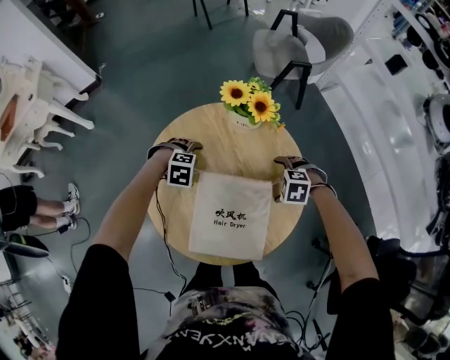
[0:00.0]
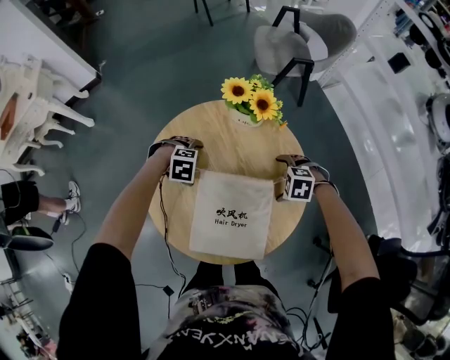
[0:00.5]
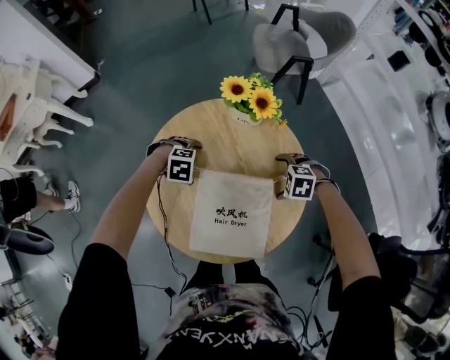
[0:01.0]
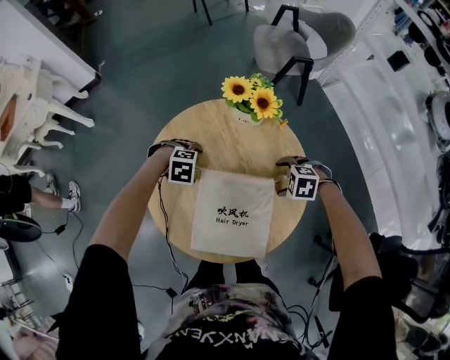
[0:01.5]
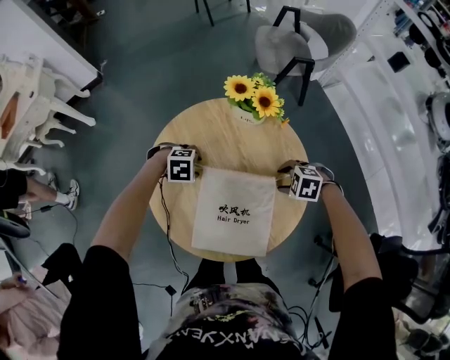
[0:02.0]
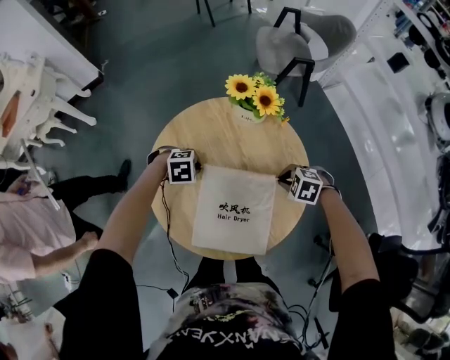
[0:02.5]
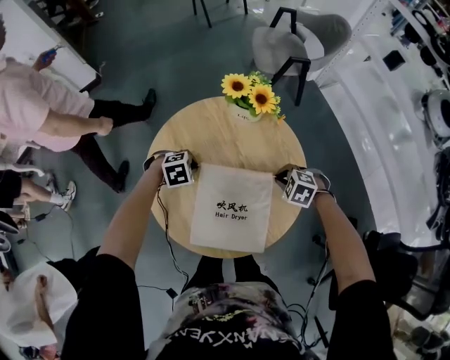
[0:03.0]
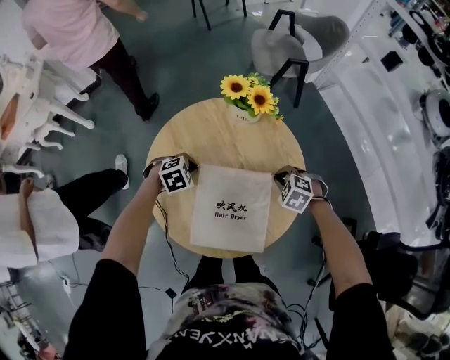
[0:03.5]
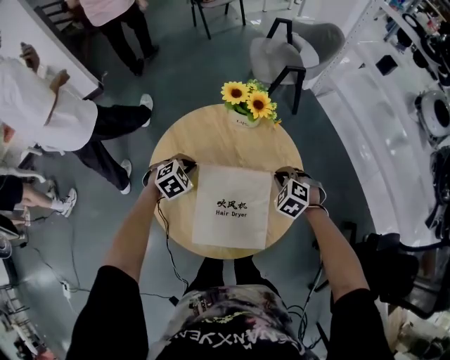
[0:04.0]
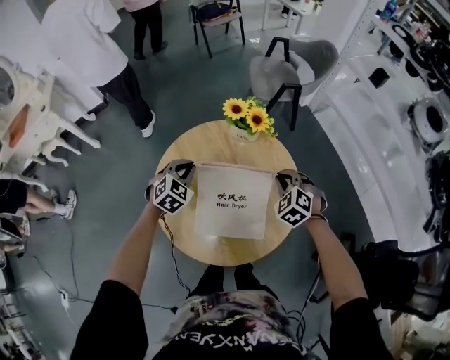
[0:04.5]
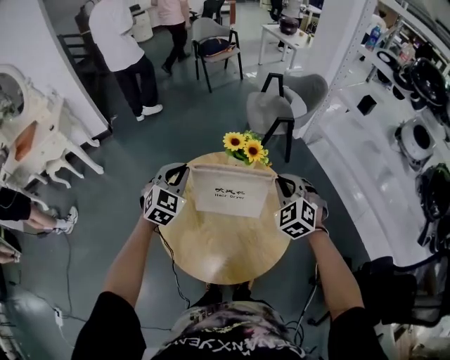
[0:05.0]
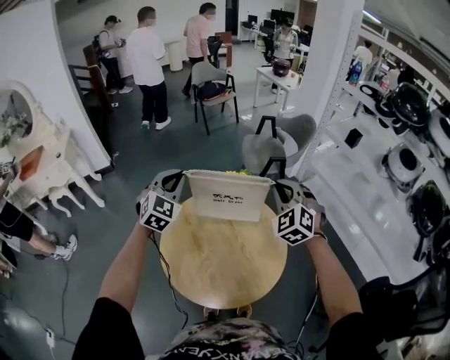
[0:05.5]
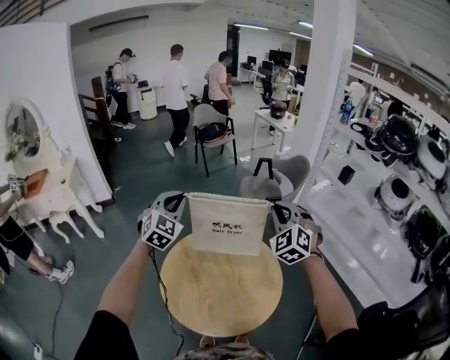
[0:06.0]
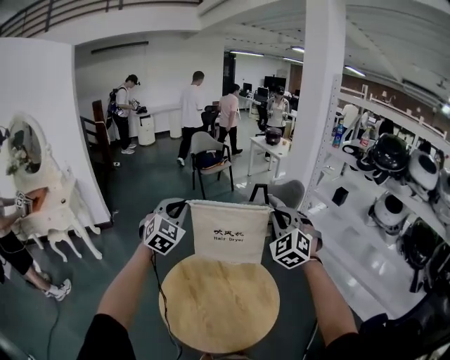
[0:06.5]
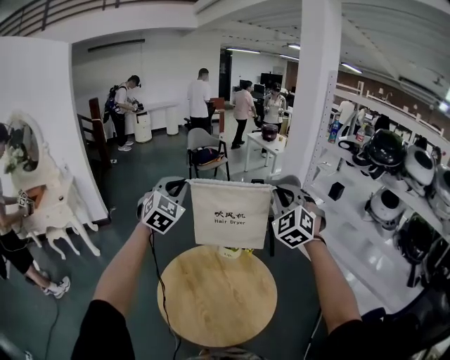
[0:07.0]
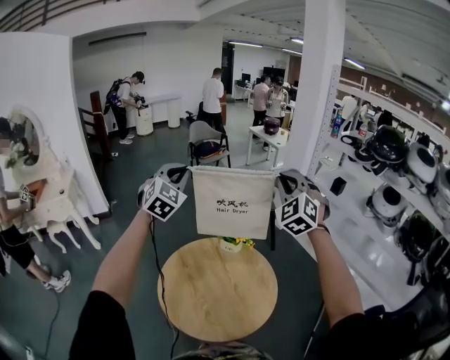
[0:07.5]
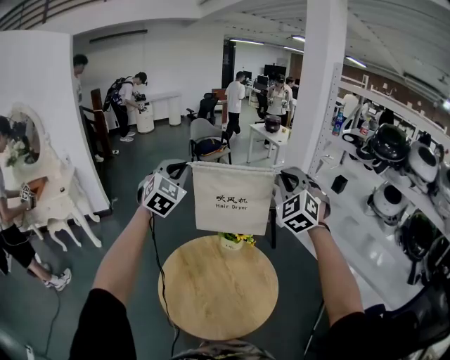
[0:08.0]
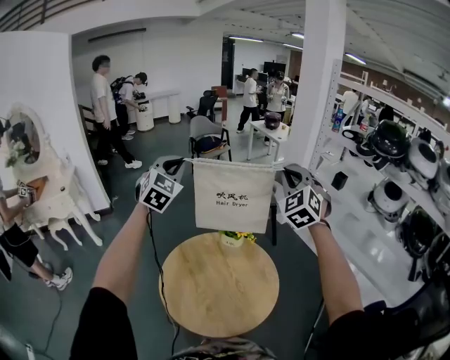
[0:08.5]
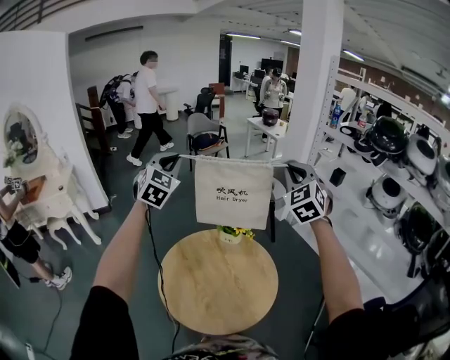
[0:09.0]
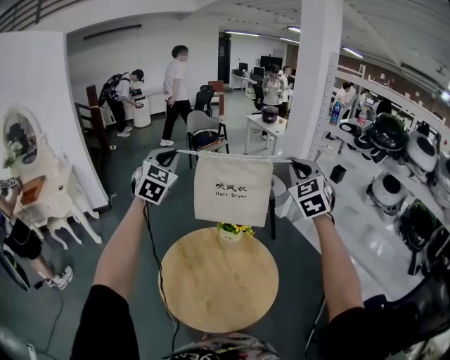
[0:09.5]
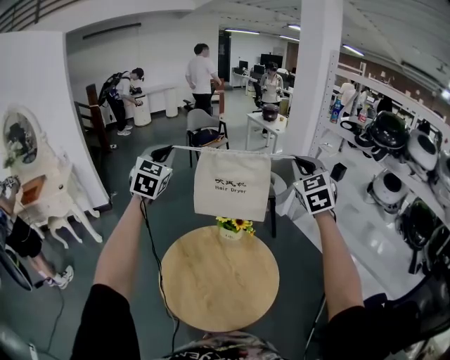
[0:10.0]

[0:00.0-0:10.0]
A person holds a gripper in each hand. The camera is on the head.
0:00.0 to 0:02.0: The right gripper closes its fingers. Meanwhile the left gripper closes its fingers.
0:02.0 to 0:04.0: The right gripper changes its angle by about 30 degrees, and closes. The left gripper turns by some 30 degrees, and closes up.
0:04.0 to 0:06.0: Both grippers move upward, roughly 40 cm. The right gripper points its fingers some 50 degrees further upward; the left gripper tilts its fingers some 50 degrees upward.
0:06.0 to 0:08.0: Both grippers travel together upward, some 15 cm.
0:08.0 to 0:10.0: The right gripper shifts some 5 cm to the right, and changes its angle by about 20 degrees.

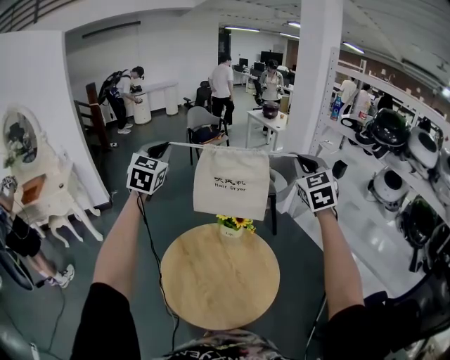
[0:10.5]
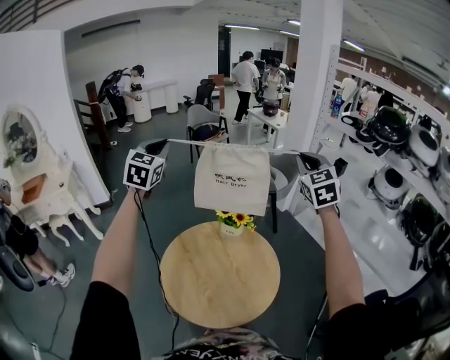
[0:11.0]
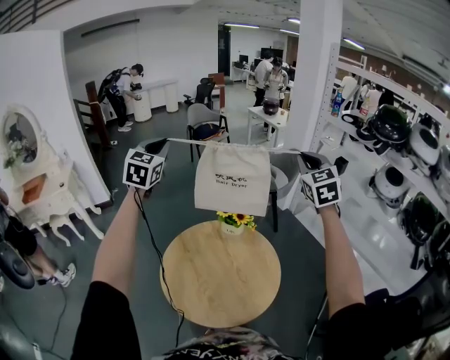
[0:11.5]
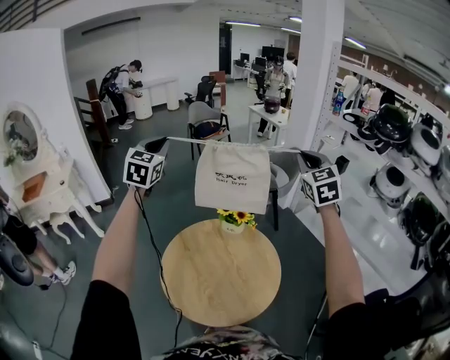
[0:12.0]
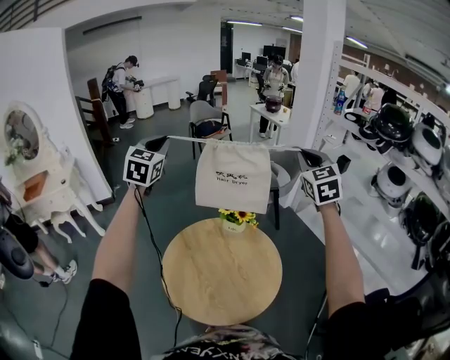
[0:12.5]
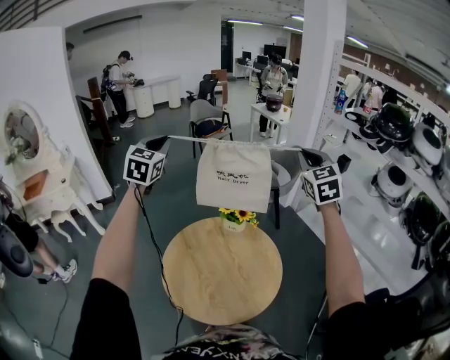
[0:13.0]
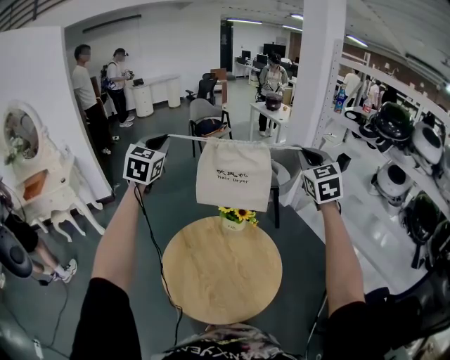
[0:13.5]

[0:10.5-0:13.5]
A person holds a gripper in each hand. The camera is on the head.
0:10.5 to 0:12.0: The grippers move only a little.
0:12.0 to 0:13.5: Neither gripper changes place.

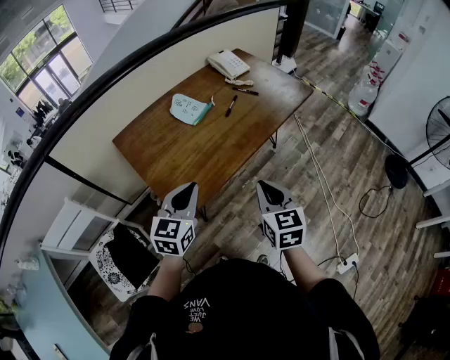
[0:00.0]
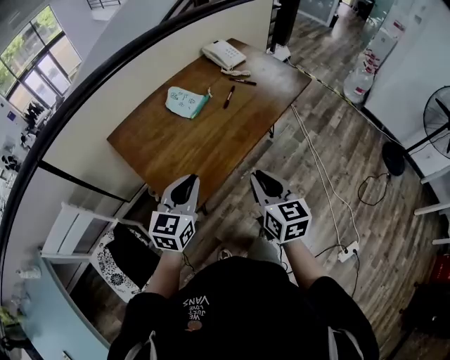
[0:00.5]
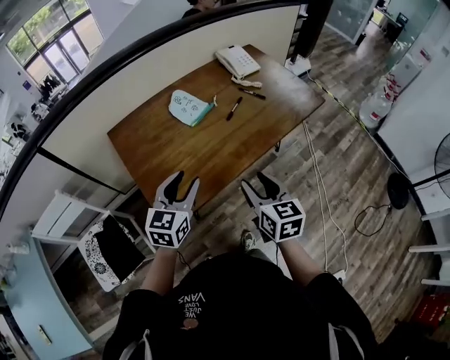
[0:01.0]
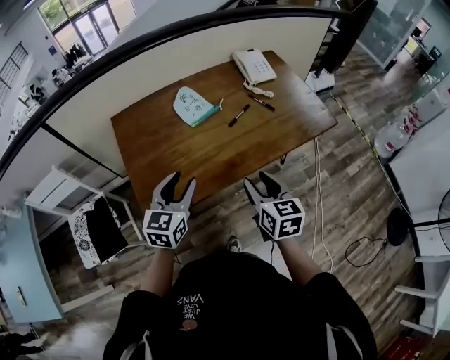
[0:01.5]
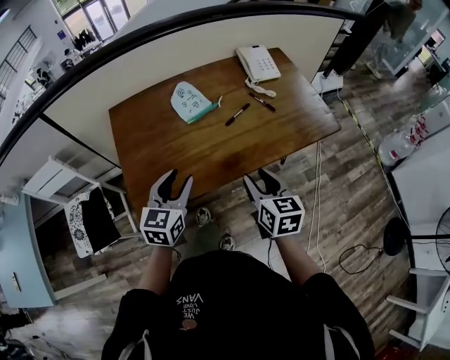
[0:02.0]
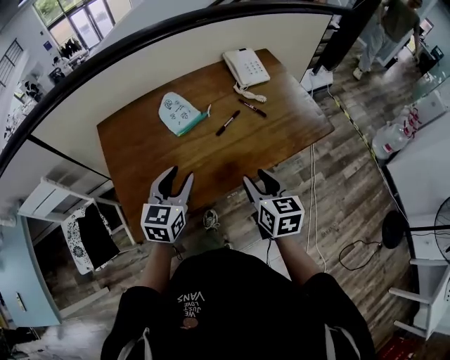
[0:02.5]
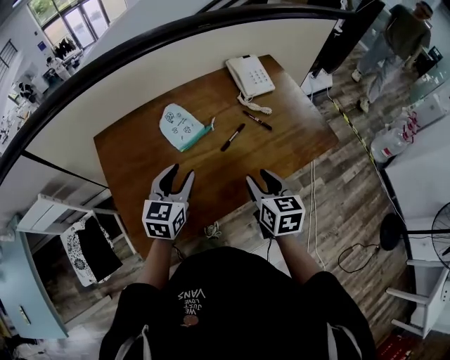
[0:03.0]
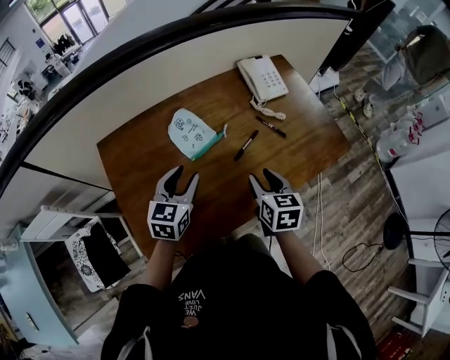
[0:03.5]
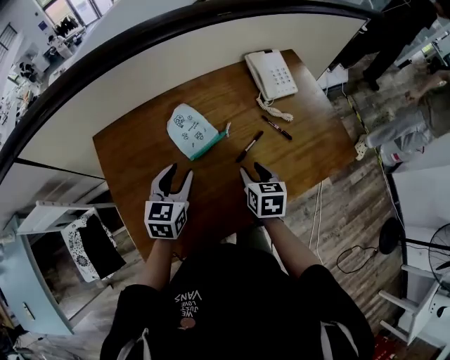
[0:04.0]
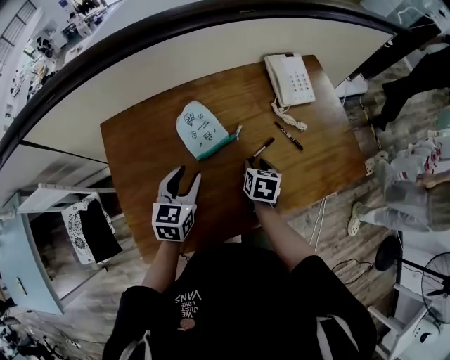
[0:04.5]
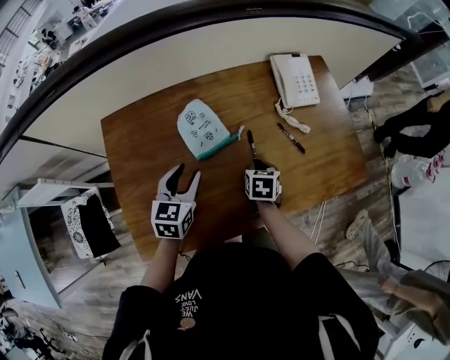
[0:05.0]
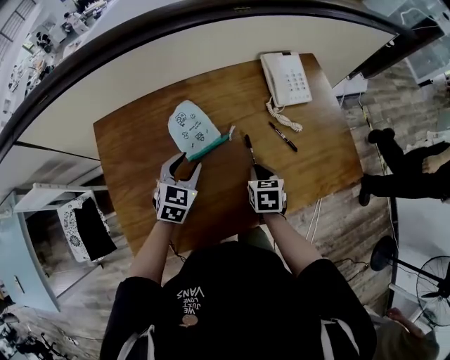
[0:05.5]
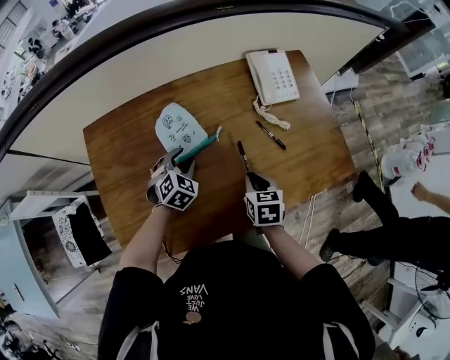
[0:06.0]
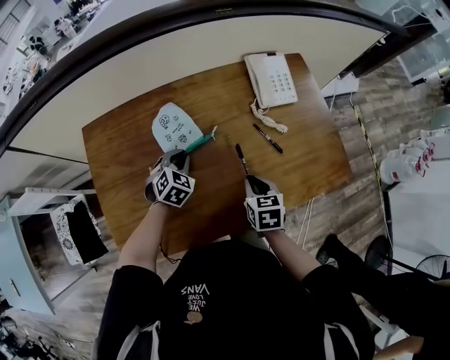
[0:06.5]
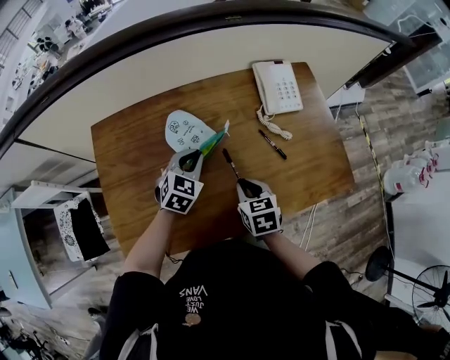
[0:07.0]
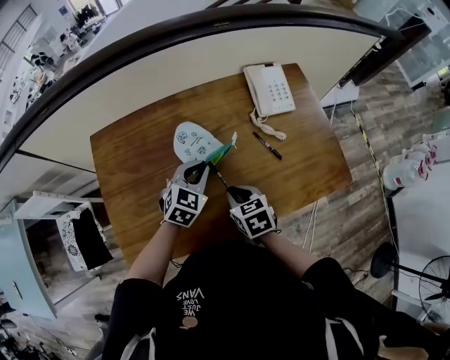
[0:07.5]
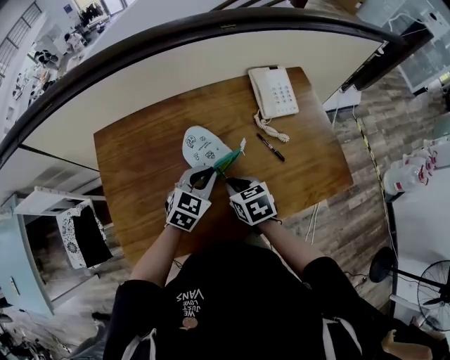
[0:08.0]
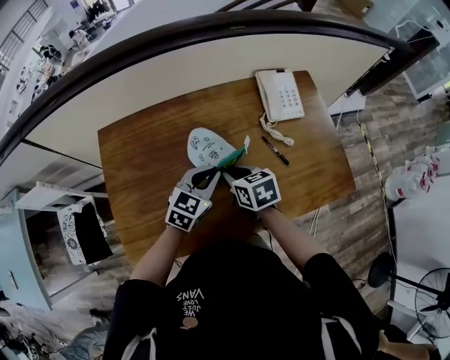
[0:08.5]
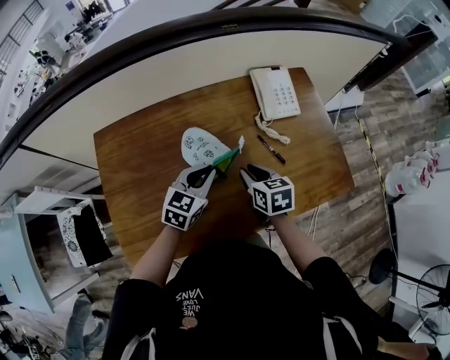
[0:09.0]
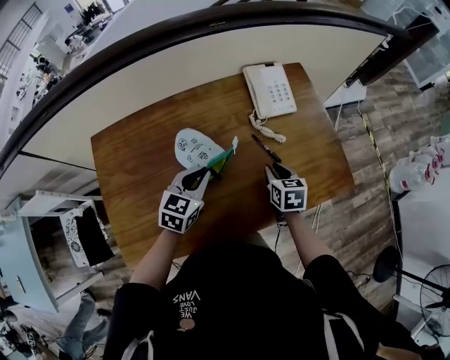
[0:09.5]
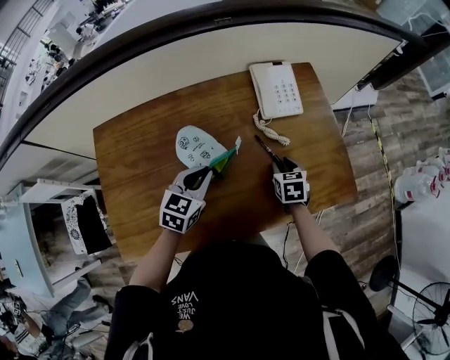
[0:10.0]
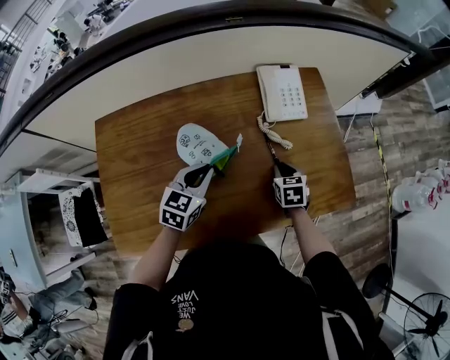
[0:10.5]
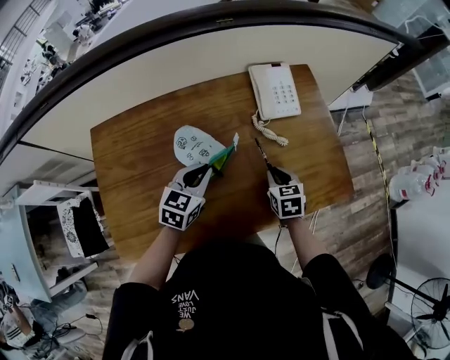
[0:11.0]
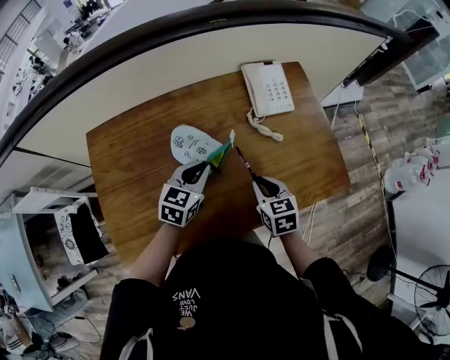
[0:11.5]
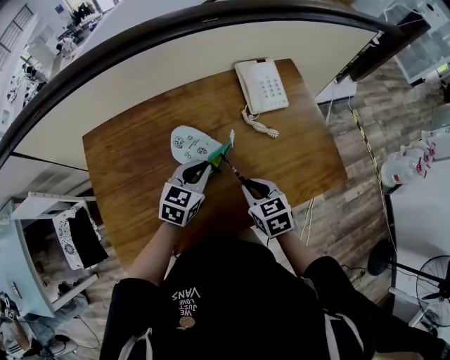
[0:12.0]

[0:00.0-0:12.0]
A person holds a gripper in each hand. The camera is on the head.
0:00.0 to 0:02.0: The grippers both shift forward and to the right by about 20 cm. The left gripper swivels some 20 degrees, and opens. The right gripper turns by roughly 20 degrees, and opens up.
0:02.0 to 0:04.0: The right gripper goes approximately 25 cm forward and downward, while the left gripper goes roughly 20 cm forward.
0:04.0 to 0:06.0: The left gripper travels downward and forward by about 15 cm, and changes its angle by roughly 40 degrees. The right gripper closes its fingers.
0:06.0 to 0:08.0: The left gripper shifts approximately 10 cm upward and to the right, turns by approximately 20 degrees, and closes its fingers. Meanwhile the right gripper is displaced to the left by some 5 cm, and changes its angle by about 20 degrees.
0:08.0 to 0:10.0: The right gripper goes some 20 cm to the right and forward.
0:10.0 to 0:12.0: The right gripper moves backward, to the left and upward, about 15 cm.

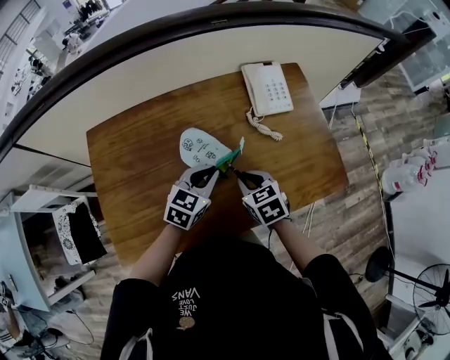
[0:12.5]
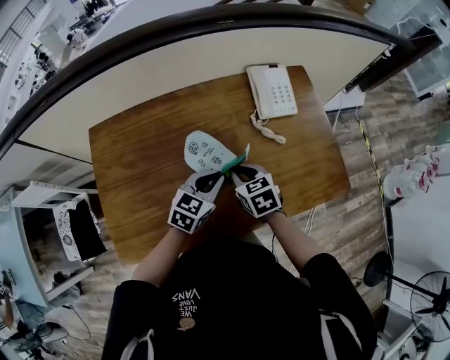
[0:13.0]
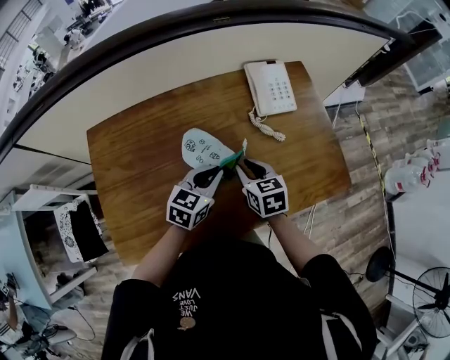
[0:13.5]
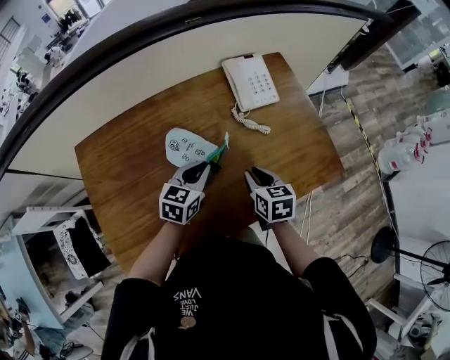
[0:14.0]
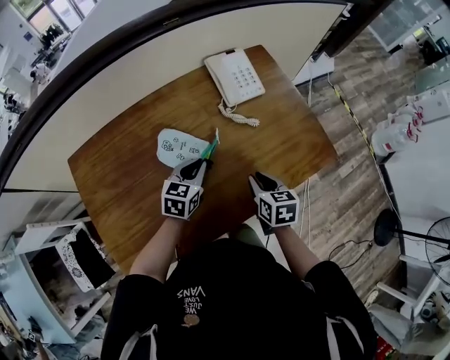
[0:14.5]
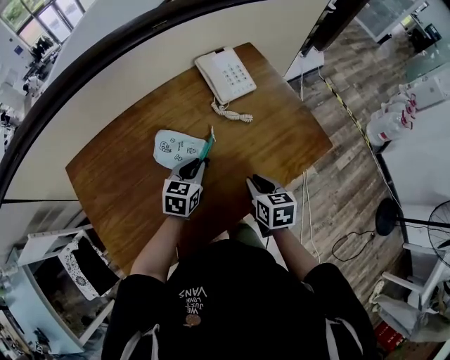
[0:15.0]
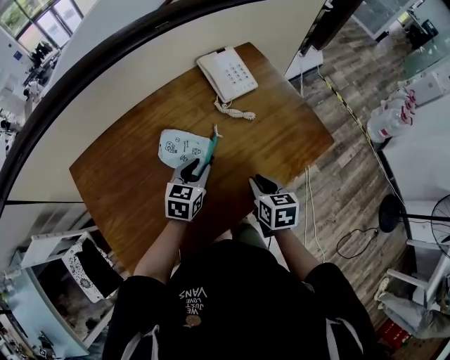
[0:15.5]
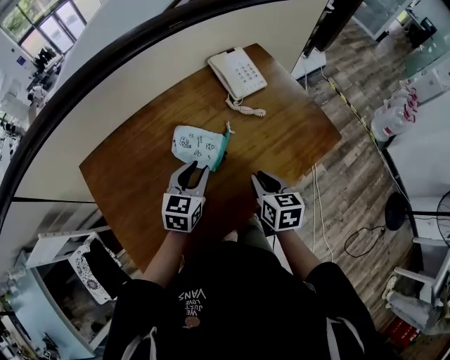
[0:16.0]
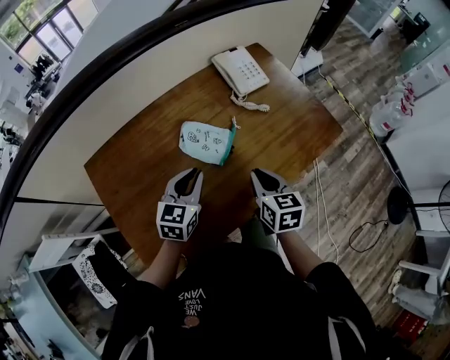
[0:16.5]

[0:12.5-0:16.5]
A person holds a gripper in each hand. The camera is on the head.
0:12.5 to 0:14.5: The left gripper changes place by about 5 cm, while the right gripper moves to the right, some 10 cm, and swivels about 30 degrees.
0:14.5 to 0:16.5: The right gripper travels to the left, backward and upward by about 15 cm. Meanwhile the left gripper is displaced backward, to the left and upward by approximately 15 cm.
